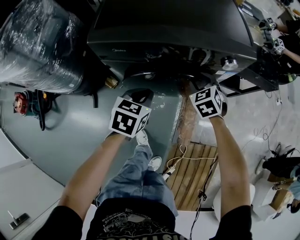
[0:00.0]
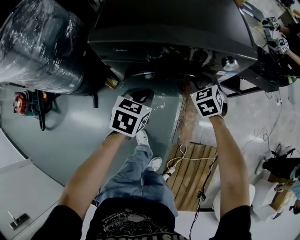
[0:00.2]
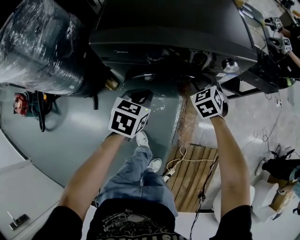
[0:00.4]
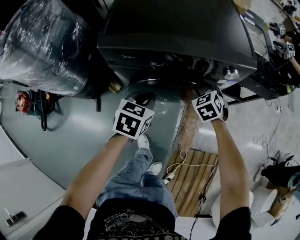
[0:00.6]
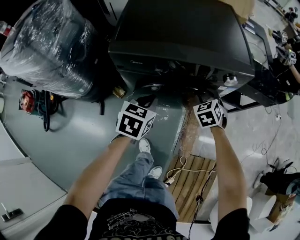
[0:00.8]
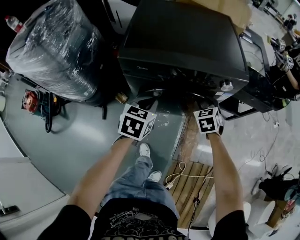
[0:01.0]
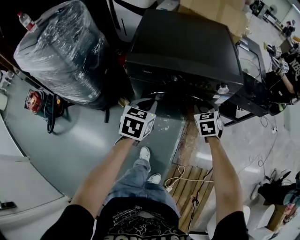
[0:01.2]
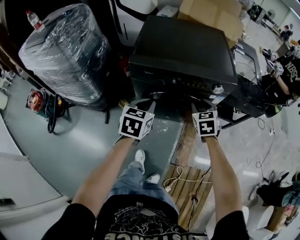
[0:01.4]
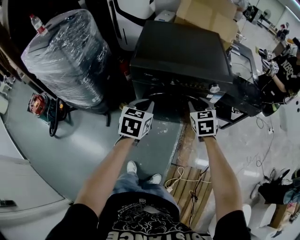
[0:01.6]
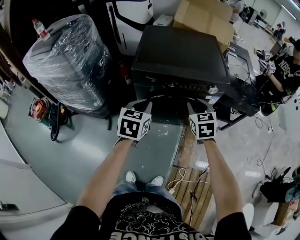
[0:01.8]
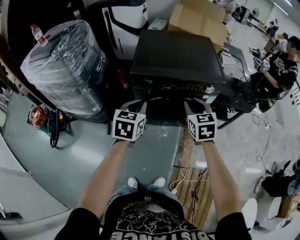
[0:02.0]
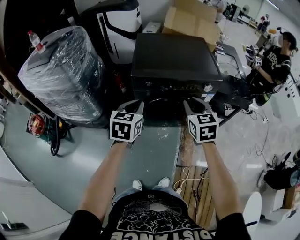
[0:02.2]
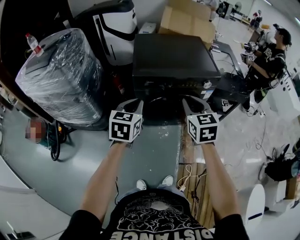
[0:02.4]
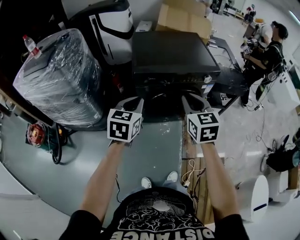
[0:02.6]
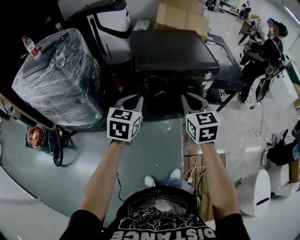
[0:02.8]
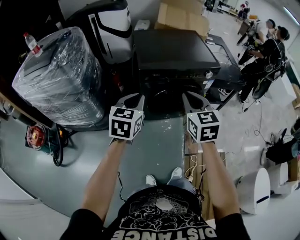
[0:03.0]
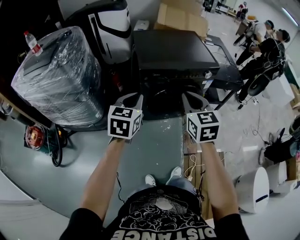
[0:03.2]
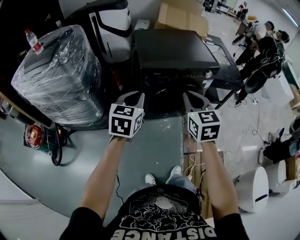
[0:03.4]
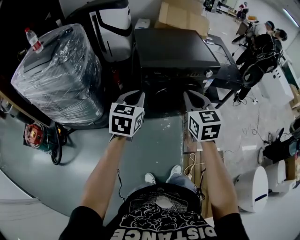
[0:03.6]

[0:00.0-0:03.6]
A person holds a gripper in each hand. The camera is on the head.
0:00.0 to 0:01.8: The two grippers go roughly 25 cm upward and backward. The right gripper changes its angle by about 30 degrees.
0:01.8 to 0:03.6: The right gripper goes some 25 cm backward, to the left and upward, and closes its fingers. The left gripper moves to the left, upward and backward, about 20 cm.

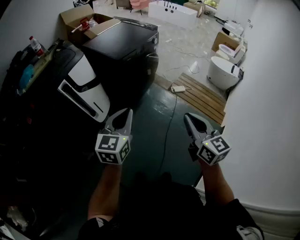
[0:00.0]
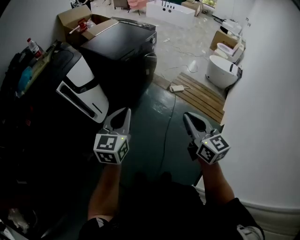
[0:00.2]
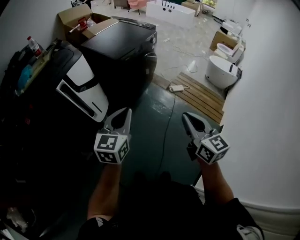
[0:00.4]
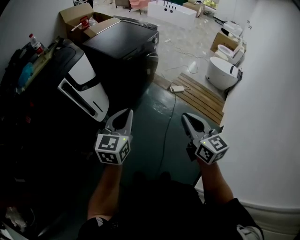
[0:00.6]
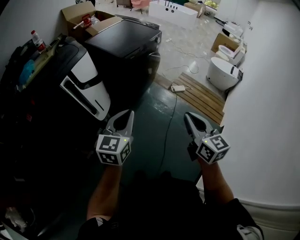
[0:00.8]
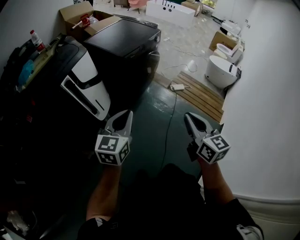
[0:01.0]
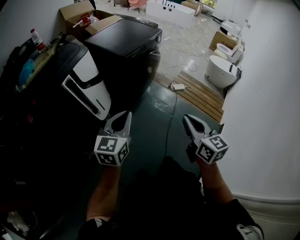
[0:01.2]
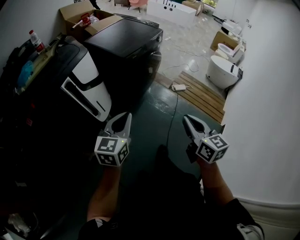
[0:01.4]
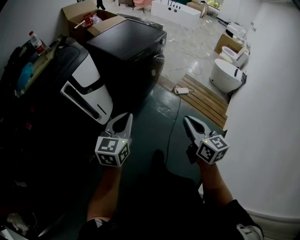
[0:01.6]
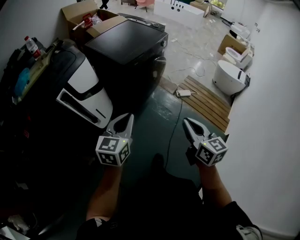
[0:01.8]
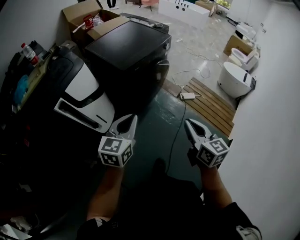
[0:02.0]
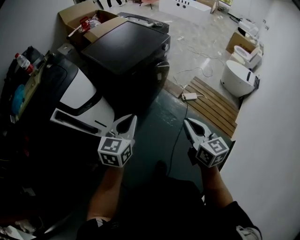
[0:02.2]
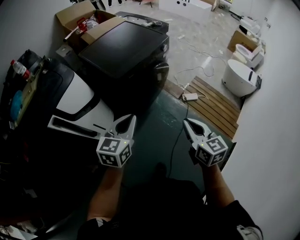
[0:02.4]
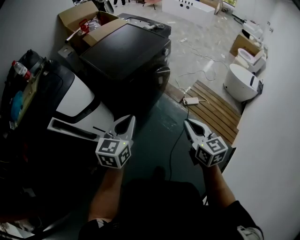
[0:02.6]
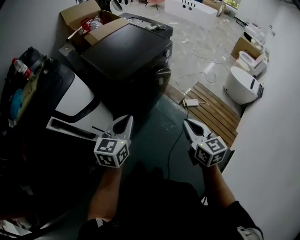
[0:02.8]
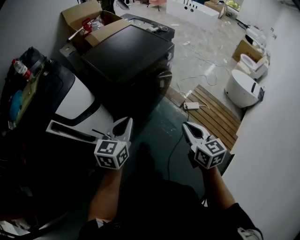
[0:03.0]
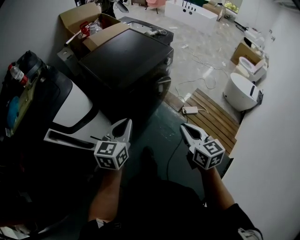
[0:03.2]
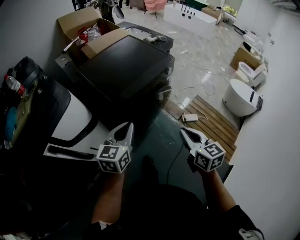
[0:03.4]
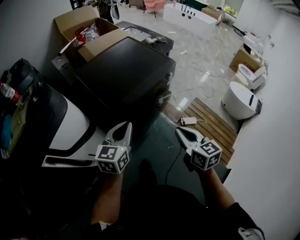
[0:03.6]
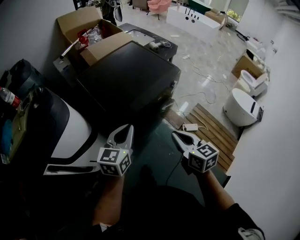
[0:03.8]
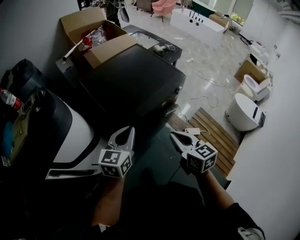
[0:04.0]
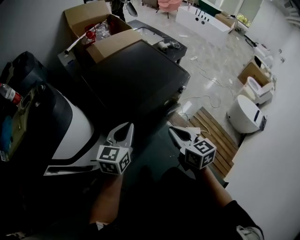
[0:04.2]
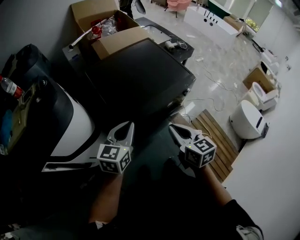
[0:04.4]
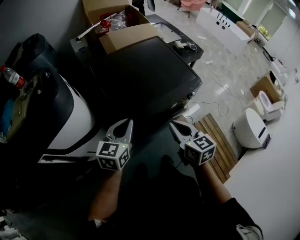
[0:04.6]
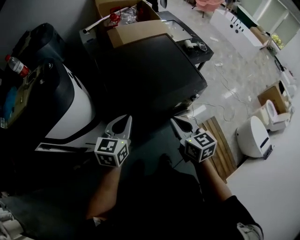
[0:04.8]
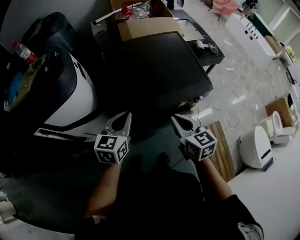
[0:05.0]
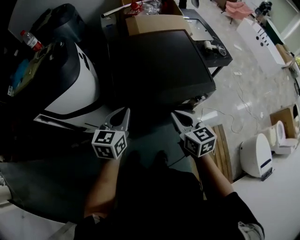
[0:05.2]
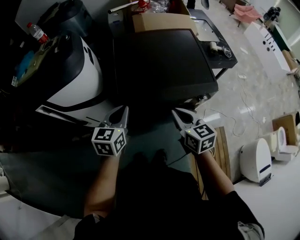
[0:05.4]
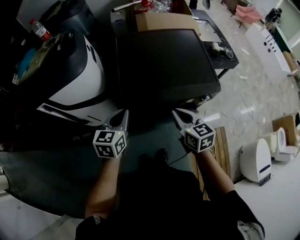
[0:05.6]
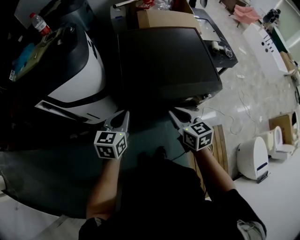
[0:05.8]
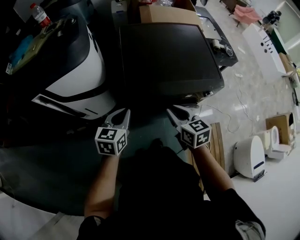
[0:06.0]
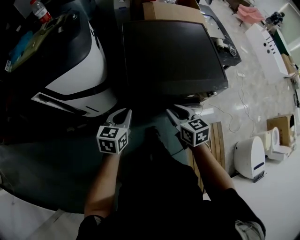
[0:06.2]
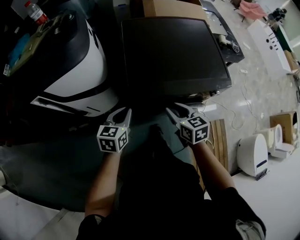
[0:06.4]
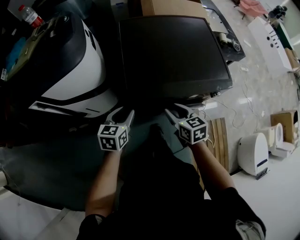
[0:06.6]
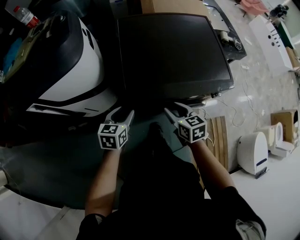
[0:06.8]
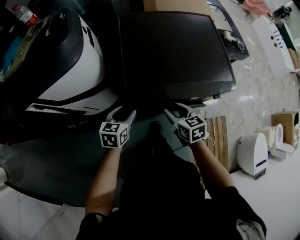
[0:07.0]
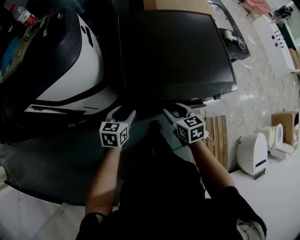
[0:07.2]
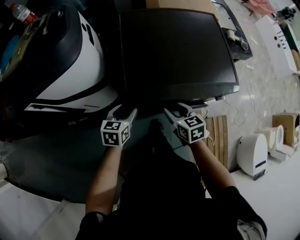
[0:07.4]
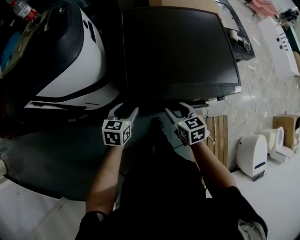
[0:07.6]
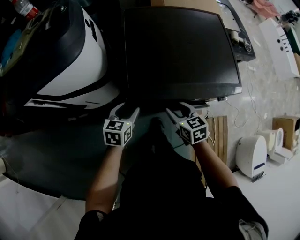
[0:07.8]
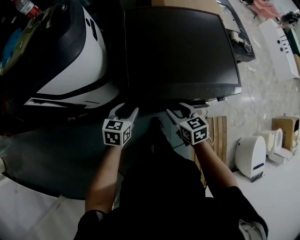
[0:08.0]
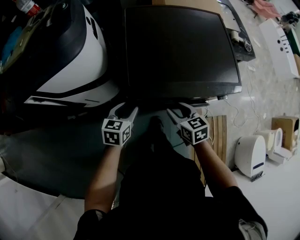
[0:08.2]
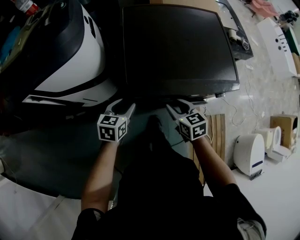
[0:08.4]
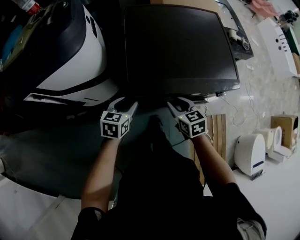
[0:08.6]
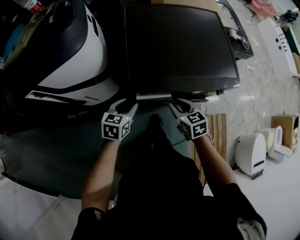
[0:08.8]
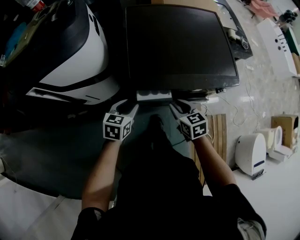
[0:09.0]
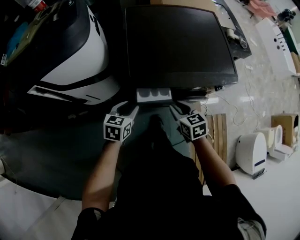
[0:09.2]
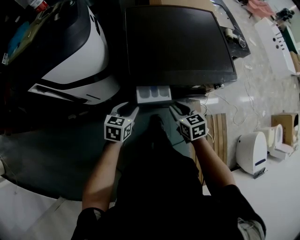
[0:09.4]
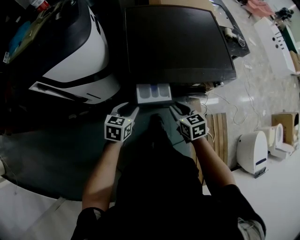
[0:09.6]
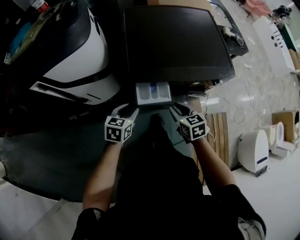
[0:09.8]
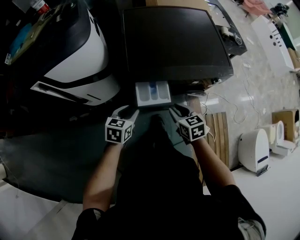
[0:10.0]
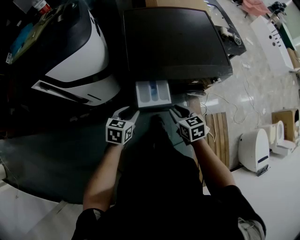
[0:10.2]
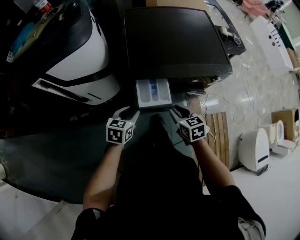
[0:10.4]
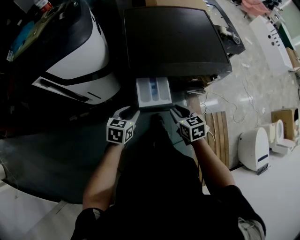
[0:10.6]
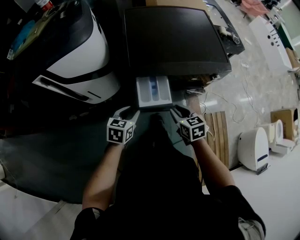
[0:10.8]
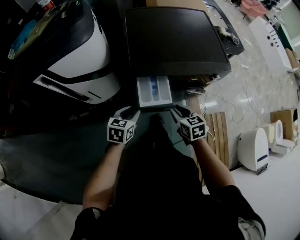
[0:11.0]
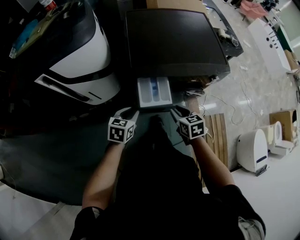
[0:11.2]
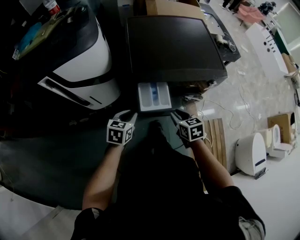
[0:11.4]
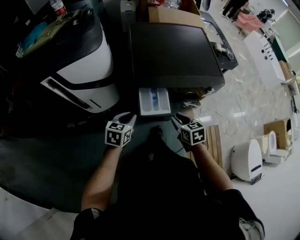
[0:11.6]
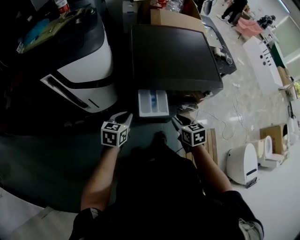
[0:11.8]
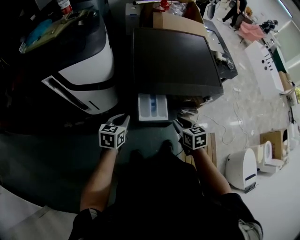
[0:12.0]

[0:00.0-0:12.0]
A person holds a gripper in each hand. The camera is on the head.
0:00.0 to 0:01.6: The left gripper shifts some 10 cm to the left and forward. The right gripper travels forward and to the left by about 10 cm.
0:01.6 to 0:03.0: The left gripper heads forward and to the right, covering roughly 30 cm, while the right gripper goes some 30 cm forward.
0:03.0 to 0:04.4: Both grippers move forward, about 30 cm.
0:04.4 to 0:06.0: Both grippers travel together downward, approximately 10 cm. The right gripper changes its angle by about 30 degrees. The left gripper changes its angle by about 30 degrees.
0:06.0 to 0:07.6: The two grippers go about 15 cm downward and forward. The left gripper opens, while the right gripper opens up.
0:07.6 to 0:09.0: There are only small adjustments of the grippers.
0:09.0 to 0:10.4: The two grippers go about 10 cm backward.
0:10.4 to 0:12.0: Both grippers travel together upward, some 5 cm. The left gripper closes.

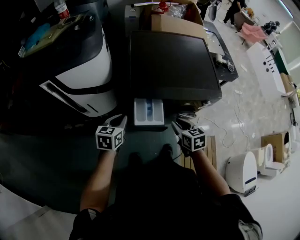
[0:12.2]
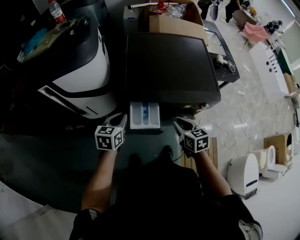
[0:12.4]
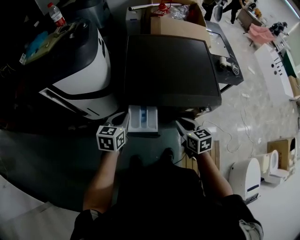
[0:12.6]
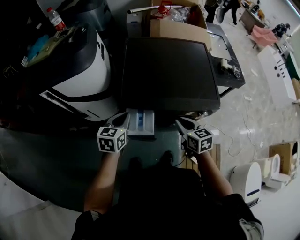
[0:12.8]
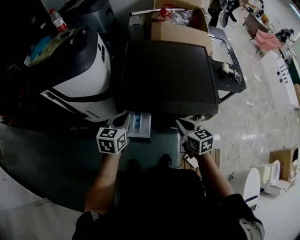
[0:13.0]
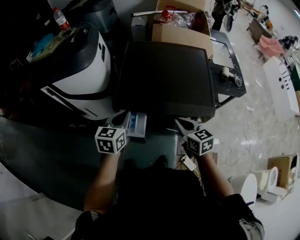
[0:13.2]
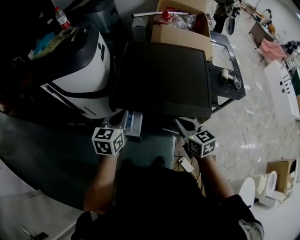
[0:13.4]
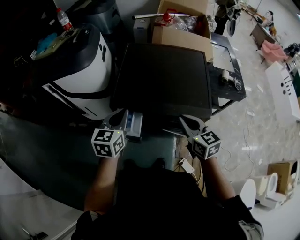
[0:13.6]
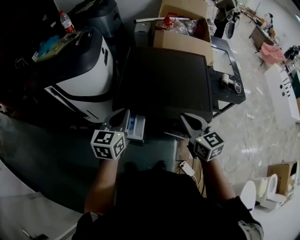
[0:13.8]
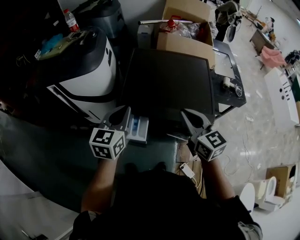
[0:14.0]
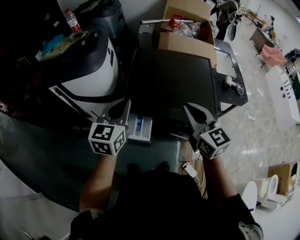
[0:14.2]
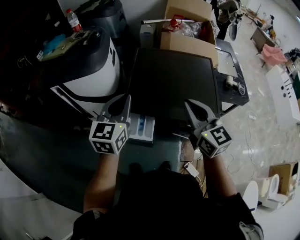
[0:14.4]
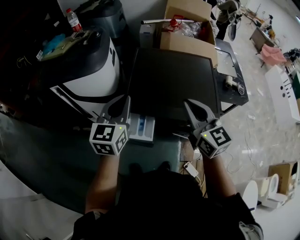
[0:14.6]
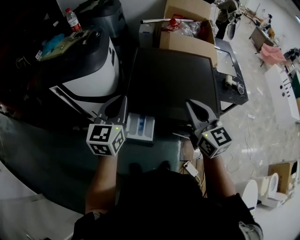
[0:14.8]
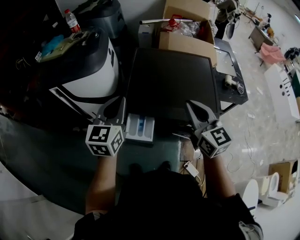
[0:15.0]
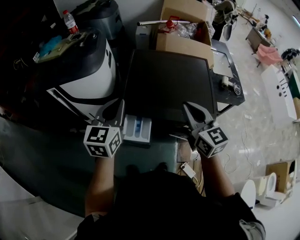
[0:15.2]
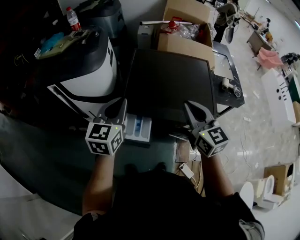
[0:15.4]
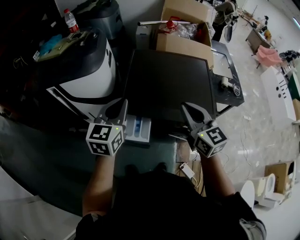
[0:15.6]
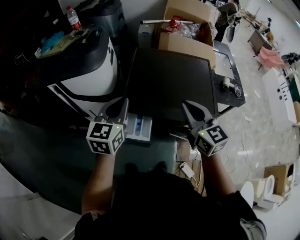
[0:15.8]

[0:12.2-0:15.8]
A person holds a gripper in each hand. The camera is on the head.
0:12.2 to 0:14.0: Both grippers move upward and to the right, approximately 25 cm. The right gripper swivels roughly 40 degrees, and closes its fingers. The left gripper rotates about 20 degrees.
0:14.0 to 0:15.8: The left gripper moves approximately 5 cm.

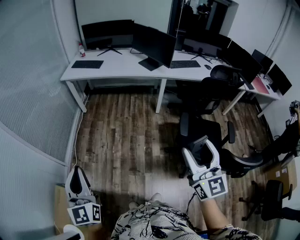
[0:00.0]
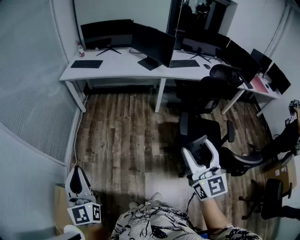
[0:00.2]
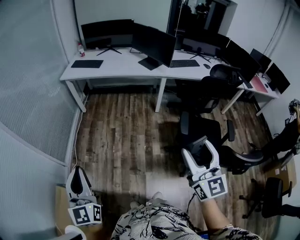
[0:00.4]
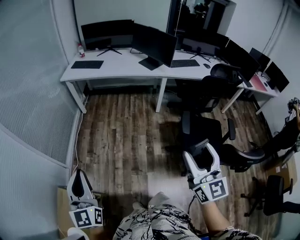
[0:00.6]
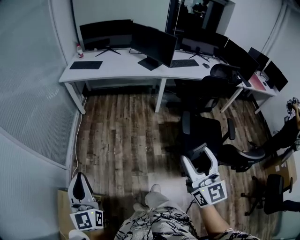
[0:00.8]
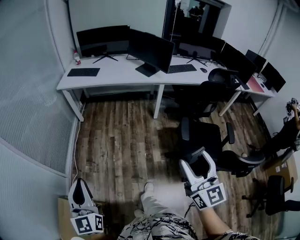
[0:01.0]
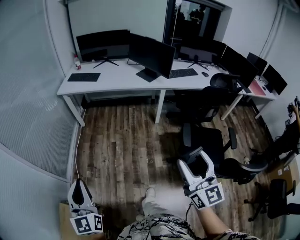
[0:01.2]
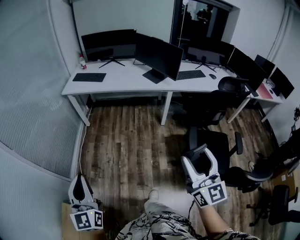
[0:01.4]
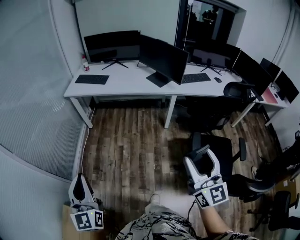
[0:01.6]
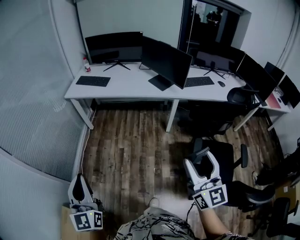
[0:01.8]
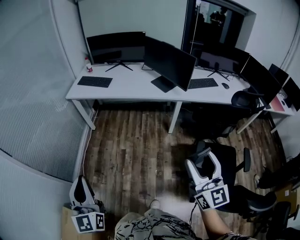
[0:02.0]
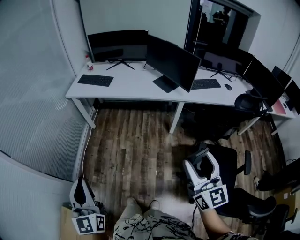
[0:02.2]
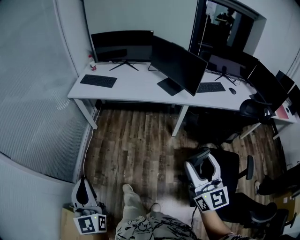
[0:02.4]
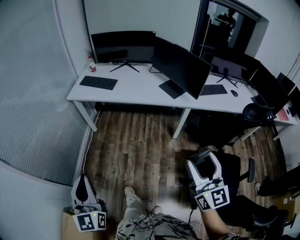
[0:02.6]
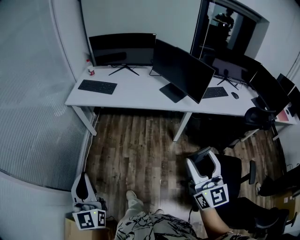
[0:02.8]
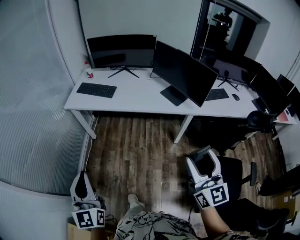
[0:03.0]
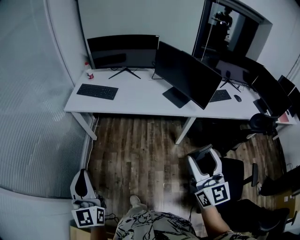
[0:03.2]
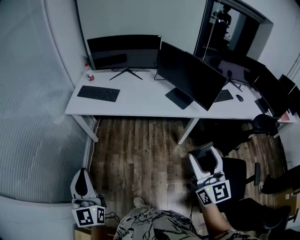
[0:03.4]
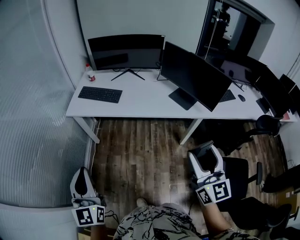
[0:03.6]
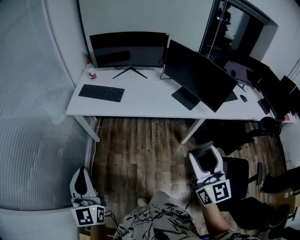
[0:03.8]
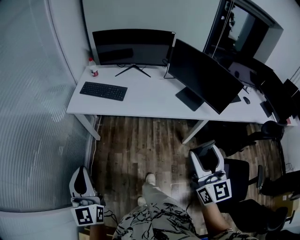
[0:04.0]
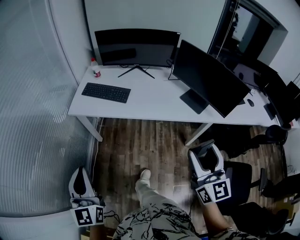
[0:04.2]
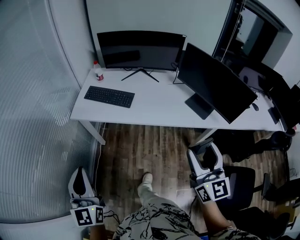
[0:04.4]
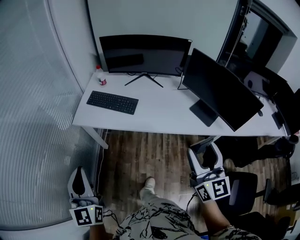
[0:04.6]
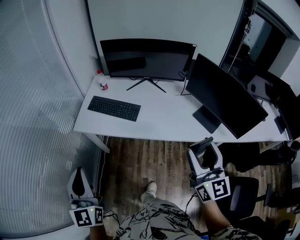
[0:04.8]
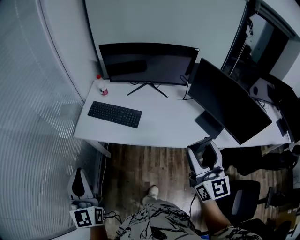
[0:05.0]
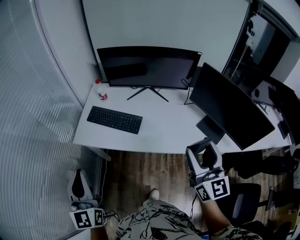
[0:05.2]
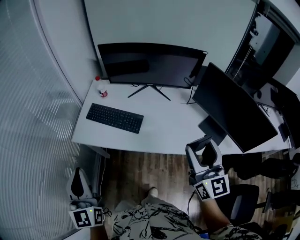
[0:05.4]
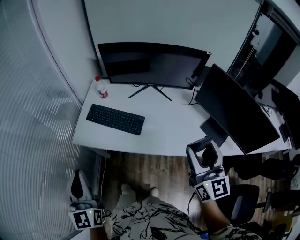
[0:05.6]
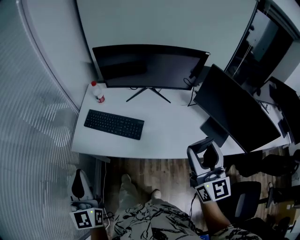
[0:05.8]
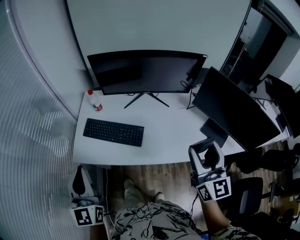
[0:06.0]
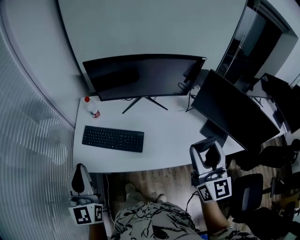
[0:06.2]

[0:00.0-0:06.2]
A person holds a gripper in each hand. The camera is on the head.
0:00.0 to 0:01.6: Both grippers travel together forward, approximately 15 cm.
0:01.6 to 0:03.2: Both grippers move forward, roughly 30 cm.
0:03.2 to 0:04.6: The grippers both shift forward and to the left by about 30 cm.
0:04.6 to 0:06.2: The two grippers go roughly 30 cm forward.
